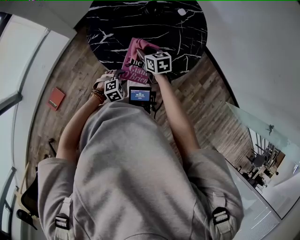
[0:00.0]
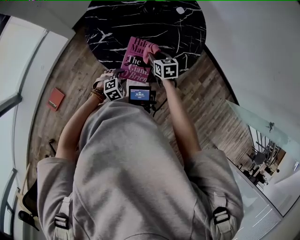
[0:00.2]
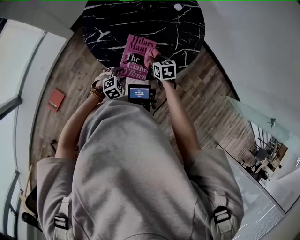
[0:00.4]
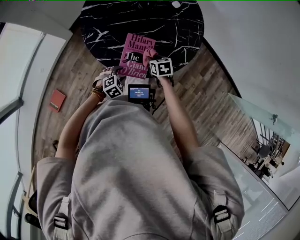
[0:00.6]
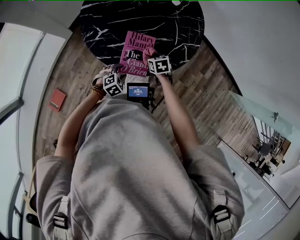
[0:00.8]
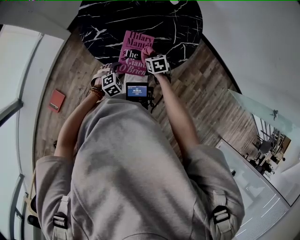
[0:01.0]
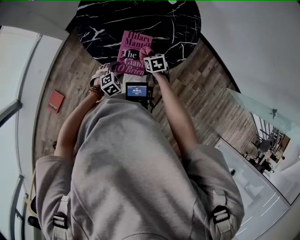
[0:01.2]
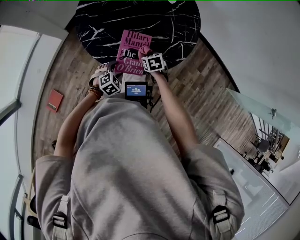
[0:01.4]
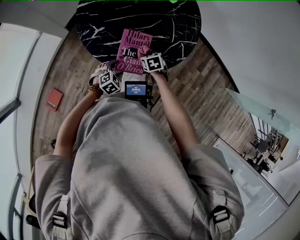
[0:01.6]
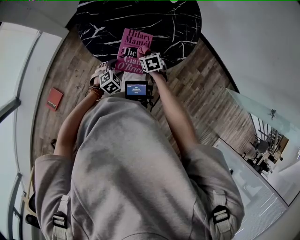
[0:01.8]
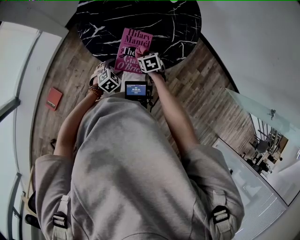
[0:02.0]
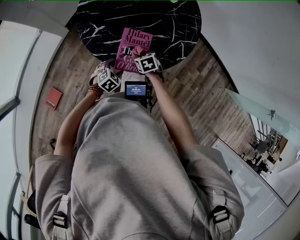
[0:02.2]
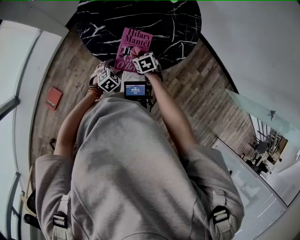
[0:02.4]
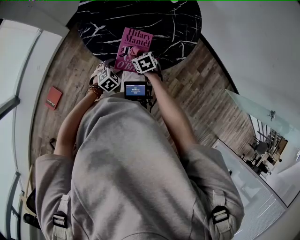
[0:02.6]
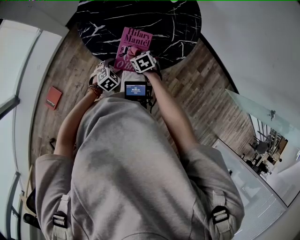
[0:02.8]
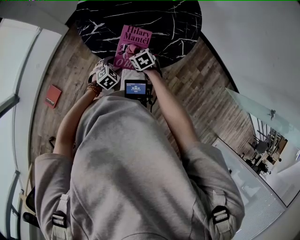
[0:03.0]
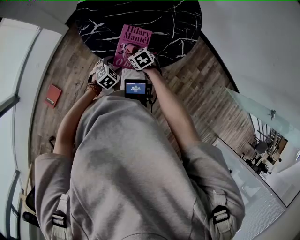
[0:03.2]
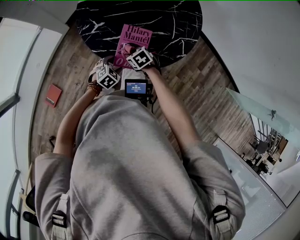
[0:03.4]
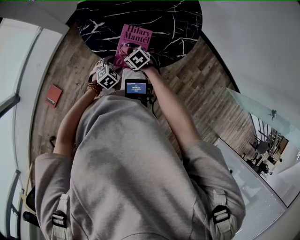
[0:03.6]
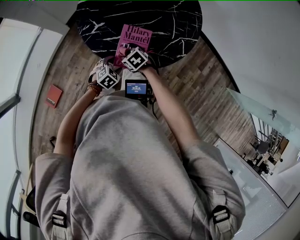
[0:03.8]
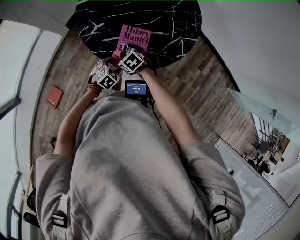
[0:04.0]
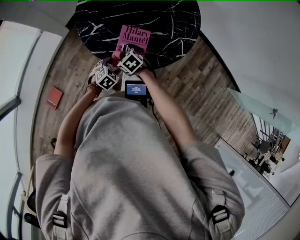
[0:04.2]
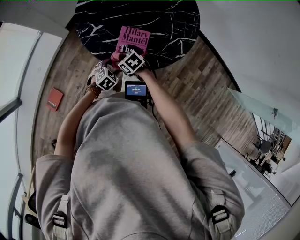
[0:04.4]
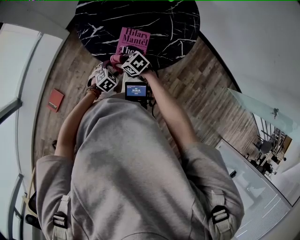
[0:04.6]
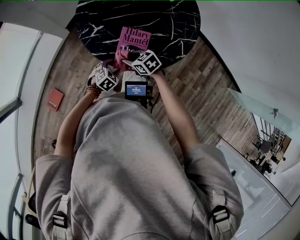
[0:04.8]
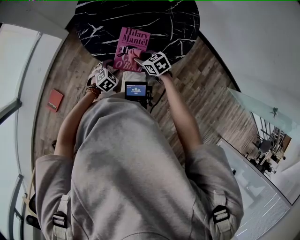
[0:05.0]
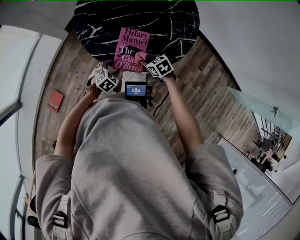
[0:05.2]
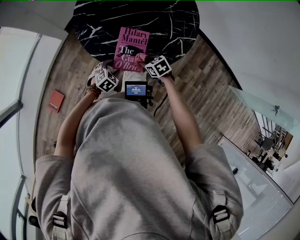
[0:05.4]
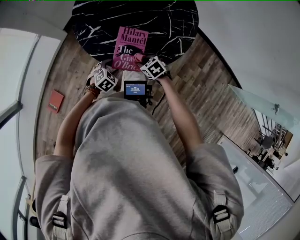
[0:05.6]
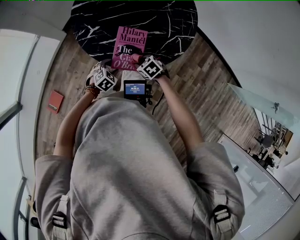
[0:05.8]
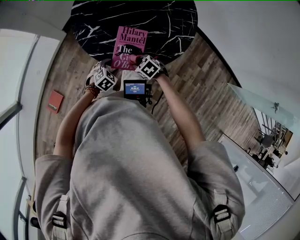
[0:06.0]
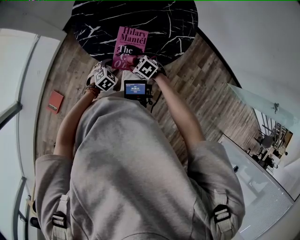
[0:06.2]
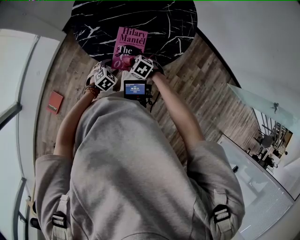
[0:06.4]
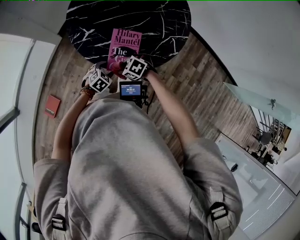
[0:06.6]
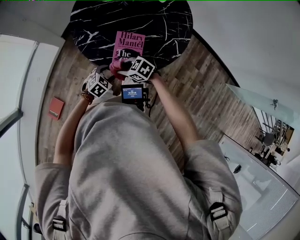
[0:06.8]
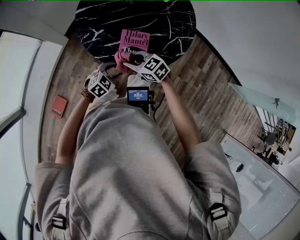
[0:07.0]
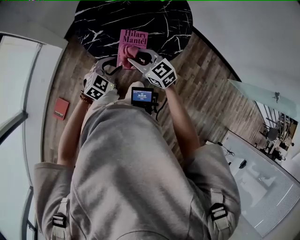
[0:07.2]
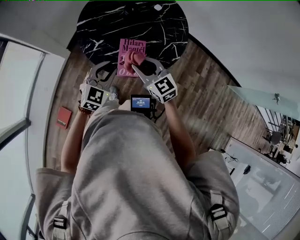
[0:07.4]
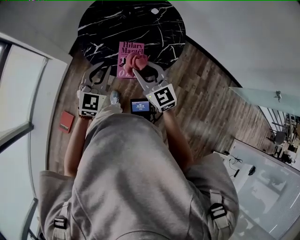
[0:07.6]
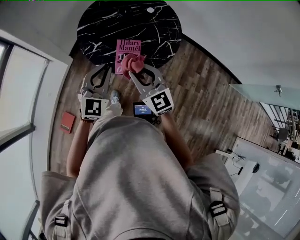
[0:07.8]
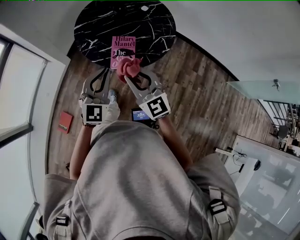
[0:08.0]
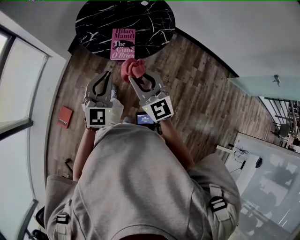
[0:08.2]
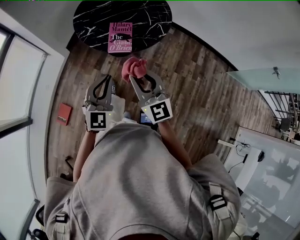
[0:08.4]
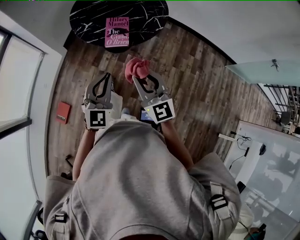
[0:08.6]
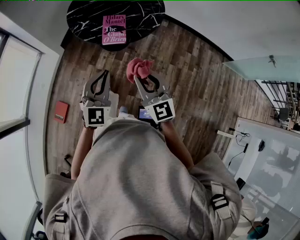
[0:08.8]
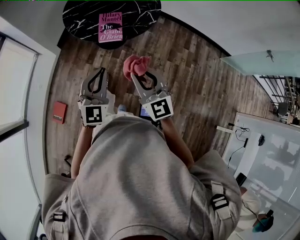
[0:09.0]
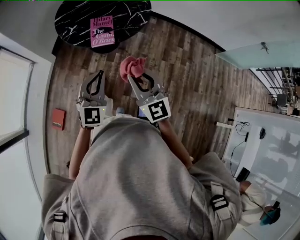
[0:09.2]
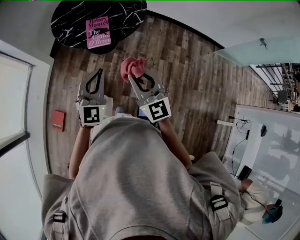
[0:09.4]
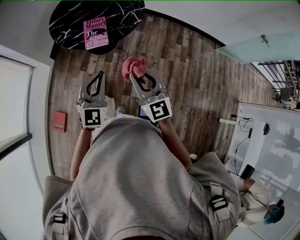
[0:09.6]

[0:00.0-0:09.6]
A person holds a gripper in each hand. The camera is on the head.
0:00.0 to 0:01.6: The right gripper moves to the right and downward, about 15 cm, and swivels about 20 degrees.
0:01.6 to 0:03.2: The right gripper shifts roughly 5 cm to the left.
0:03.2 to 0:04.8: The right gripper travels upward by some 5 cm, and rotates roughly 20 degrees.
0:04.8 to 0:06.4: The right gripper swivels approximately 20 degrees.
0:06.4 to 0:08.0: The grippers both shift upward by roughly 40 cm. The left gripper angles its fingers upward, by roughly 50 degrees, and closes its fingers. Meanwhile the right gripper points its fingers roughly 60 degrees further upward.
0:08.0 to 0:09.6: Both grippers travel together backward and to the right, about 20 cm.

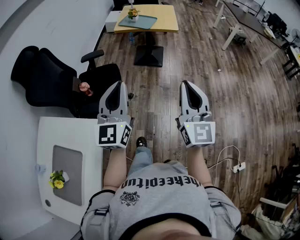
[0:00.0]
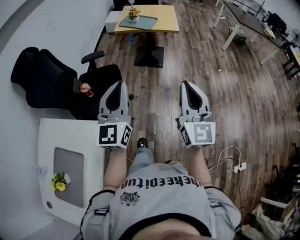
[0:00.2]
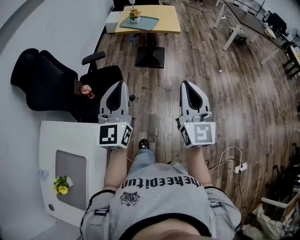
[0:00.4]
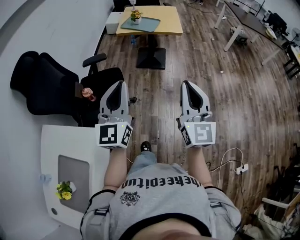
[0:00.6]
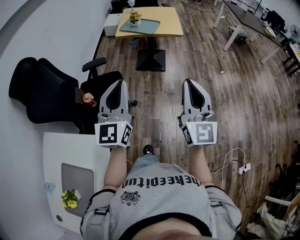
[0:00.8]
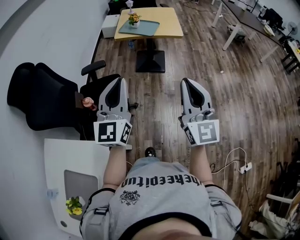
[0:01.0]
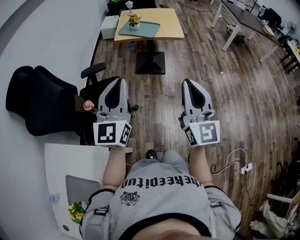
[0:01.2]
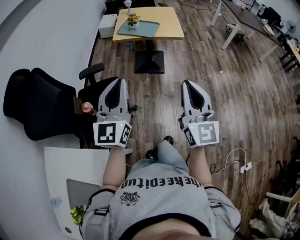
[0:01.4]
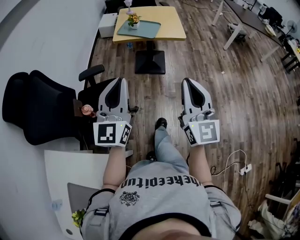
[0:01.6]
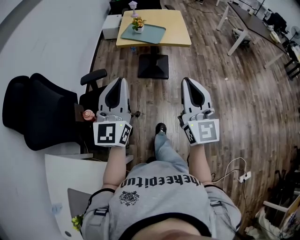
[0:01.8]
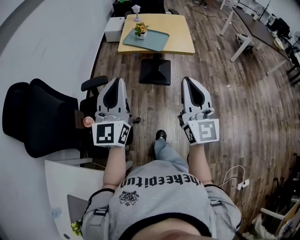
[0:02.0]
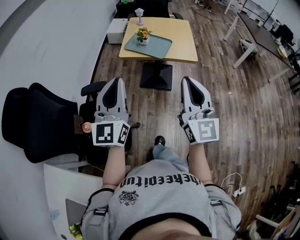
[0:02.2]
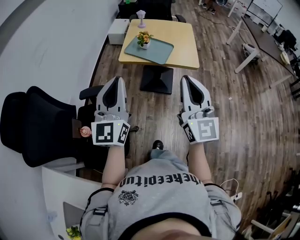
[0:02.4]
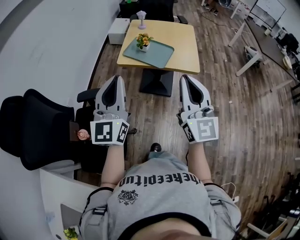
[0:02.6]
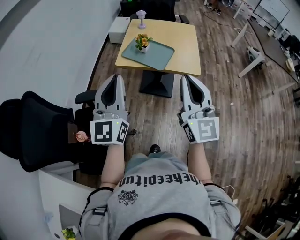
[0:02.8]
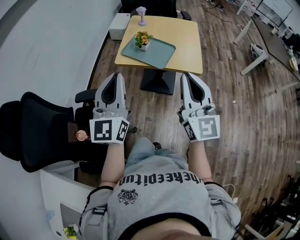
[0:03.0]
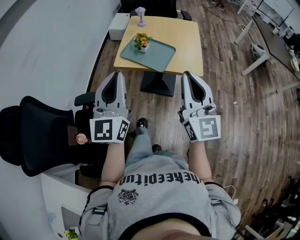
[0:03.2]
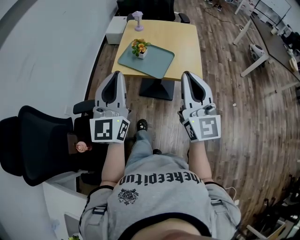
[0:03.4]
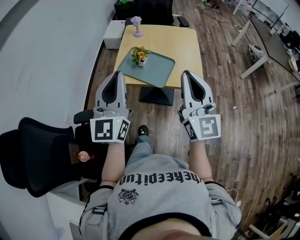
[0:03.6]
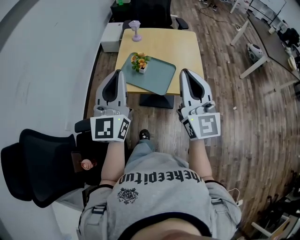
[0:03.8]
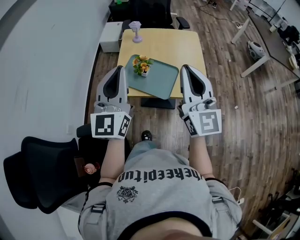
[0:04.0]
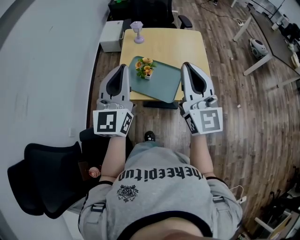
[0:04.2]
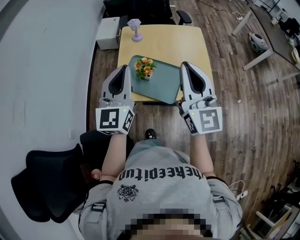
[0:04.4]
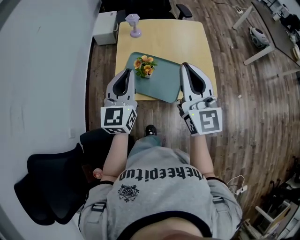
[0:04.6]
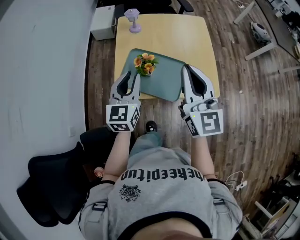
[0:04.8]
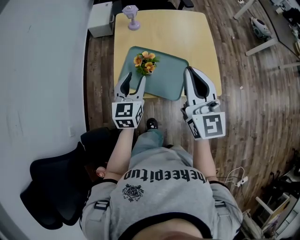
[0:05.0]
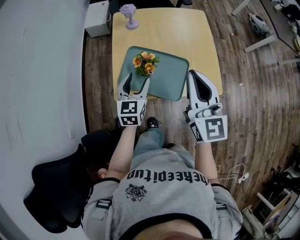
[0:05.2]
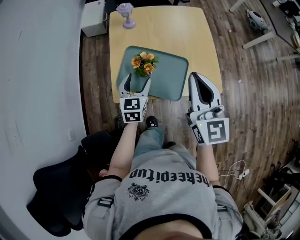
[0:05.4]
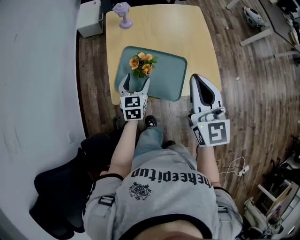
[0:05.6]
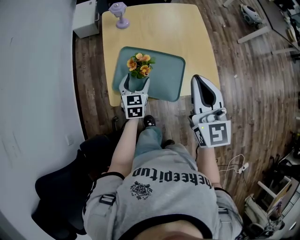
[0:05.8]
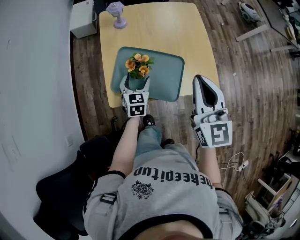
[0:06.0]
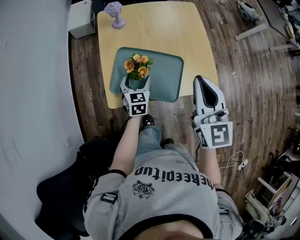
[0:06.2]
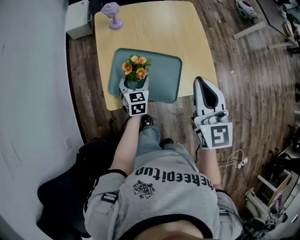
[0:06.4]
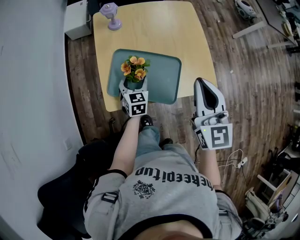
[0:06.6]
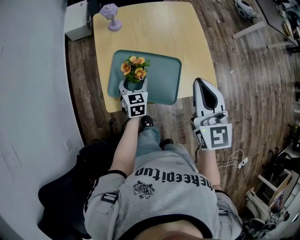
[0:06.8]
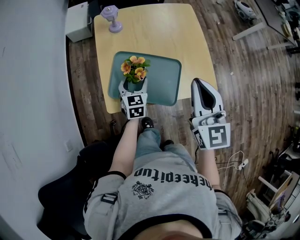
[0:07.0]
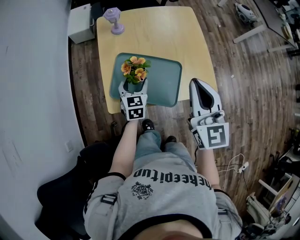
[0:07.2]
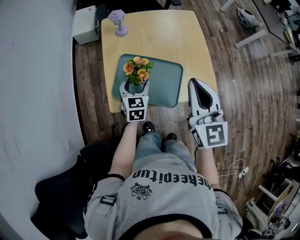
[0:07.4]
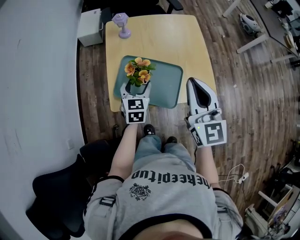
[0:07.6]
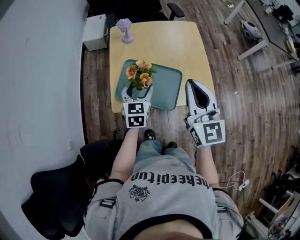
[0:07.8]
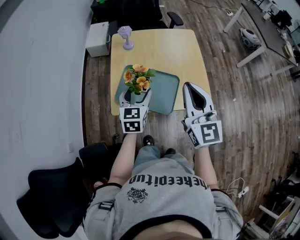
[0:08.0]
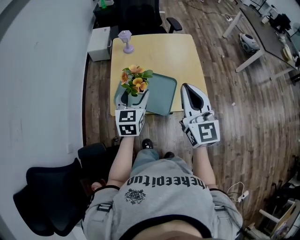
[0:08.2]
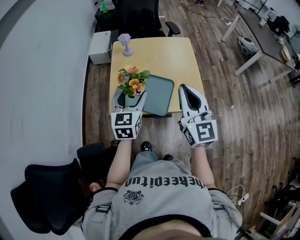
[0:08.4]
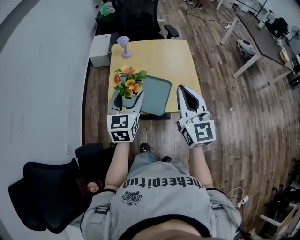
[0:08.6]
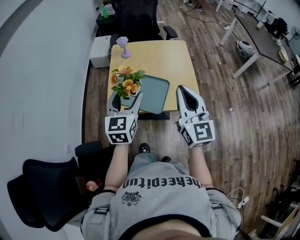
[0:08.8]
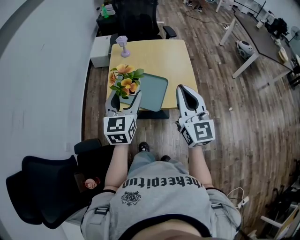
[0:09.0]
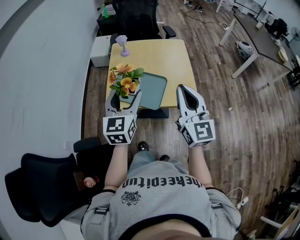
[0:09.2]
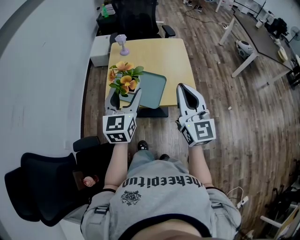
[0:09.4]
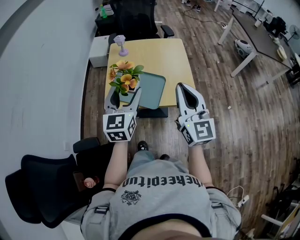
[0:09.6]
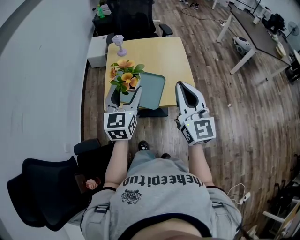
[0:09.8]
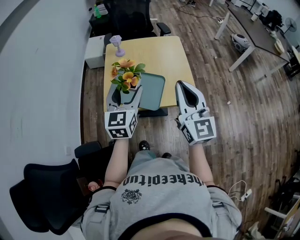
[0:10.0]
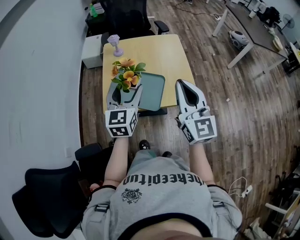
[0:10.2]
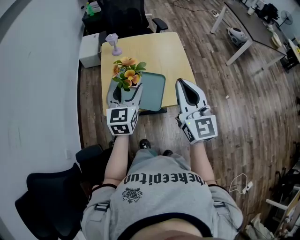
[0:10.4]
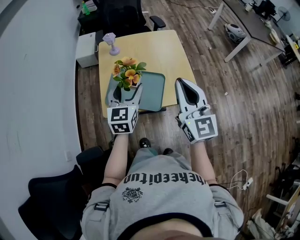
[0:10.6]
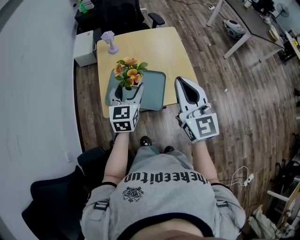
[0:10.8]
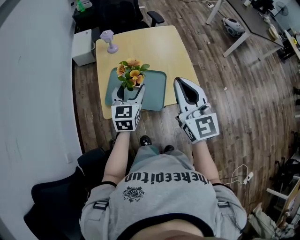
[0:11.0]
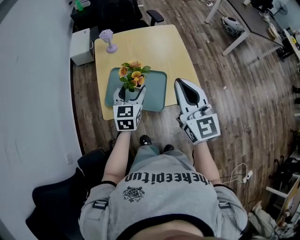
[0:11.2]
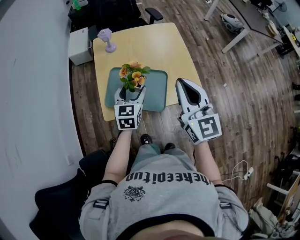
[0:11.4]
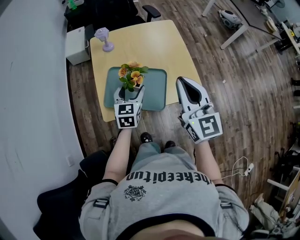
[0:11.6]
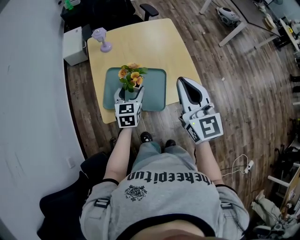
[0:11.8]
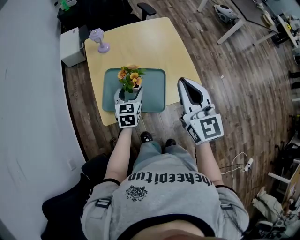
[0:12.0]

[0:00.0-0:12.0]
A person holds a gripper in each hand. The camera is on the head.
0:00.0 to 0:01.6: The left gripper travels forward by about 25 cm. The right gripper heads forward and to the left, covering about 25 cm.
0:01.6 to 0:03.0: Both grippers move forward, some 35 cm.
0:03.0 to 0:04.4: The grippers both shift forward by roughly 35 cm.
0:04.4 to 0:06.0: The right gripper goes about 10 cm downward and forward, and swivels approximately 20 degrees; the left gripper is displaced downward by roughly 35 cm, tilts its fingers about 40 degrees downward, and opens up.
0:06.0 to 0:07.6: The left gripper goes approximately 10 cm upward.
0:07.6 to 0:09.0: The right gripper is displaced backward, upward and to the right by some 15 cm, while the left gripper shifts about 25 cm upward and backward.
0:09.0 to 0:10.4: The left gripper travels forward by about 5 cm.
0:10.4 to 0:12.0: The right gripper moves forward and downward, about 10 cm. The left gripper heads downward and forward, covering about 20 cm.

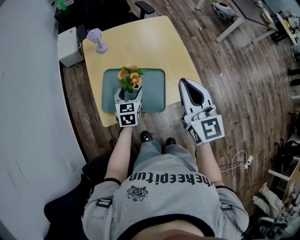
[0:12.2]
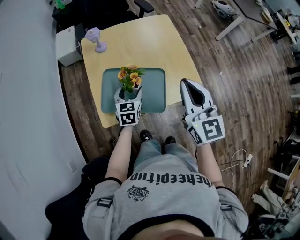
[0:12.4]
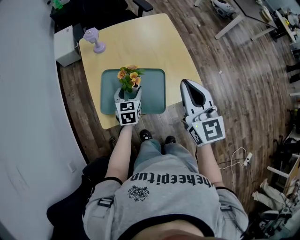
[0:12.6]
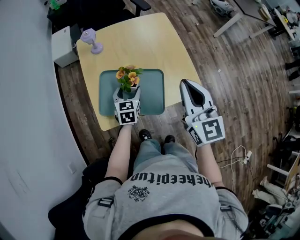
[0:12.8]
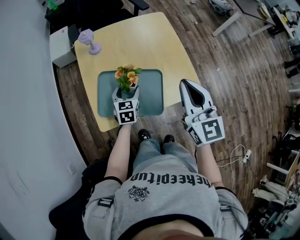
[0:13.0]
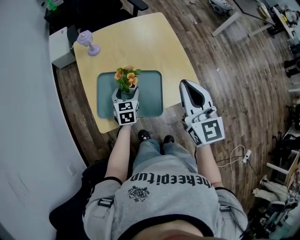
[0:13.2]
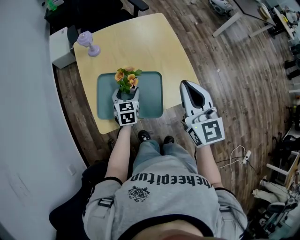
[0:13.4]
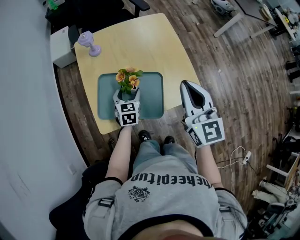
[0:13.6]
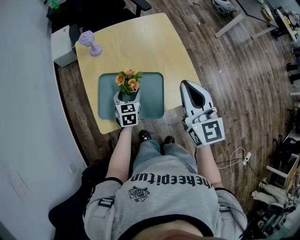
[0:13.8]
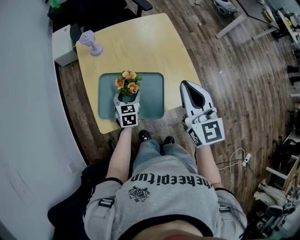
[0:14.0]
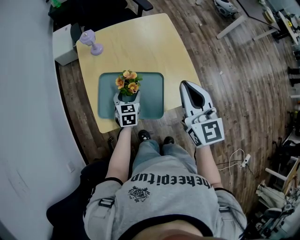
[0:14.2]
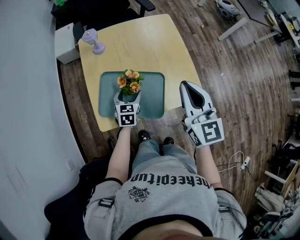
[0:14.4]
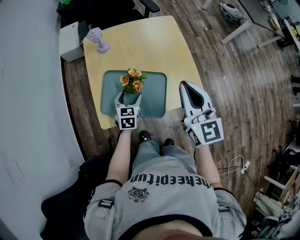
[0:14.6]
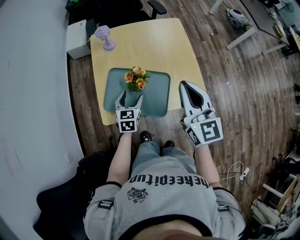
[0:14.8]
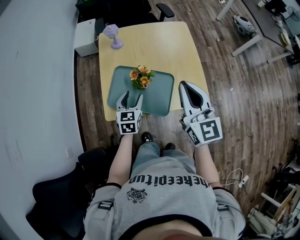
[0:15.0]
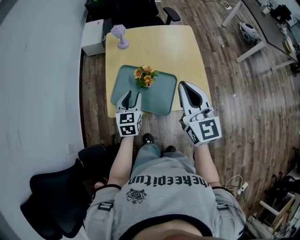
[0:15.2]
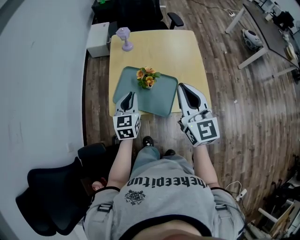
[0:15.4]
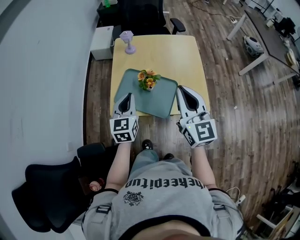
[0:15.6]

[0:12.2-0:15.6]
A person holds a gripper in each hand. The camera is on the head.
0:12.2 to 0:13.8: The left gripper moves downward, about 5 cm, while the right gripper changes place by some 5 cm.
0:13.8 to 0:15.6: The right gripper travels backward by approximately 5 cm; the left gripper moves upward and backward, about 20 cm, turns by some 30 degrees, and closes up.
